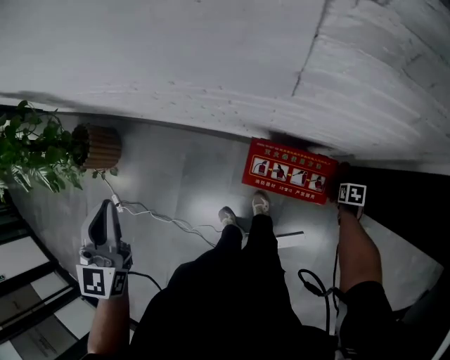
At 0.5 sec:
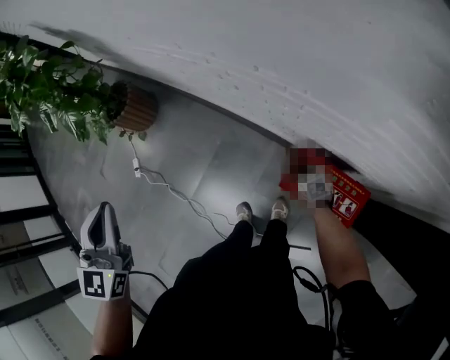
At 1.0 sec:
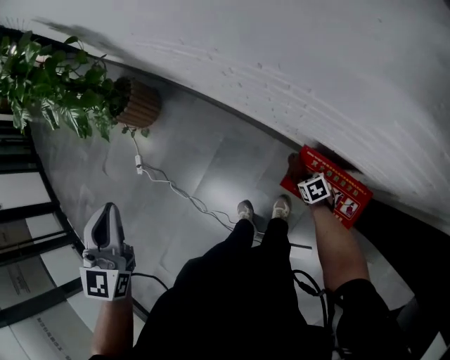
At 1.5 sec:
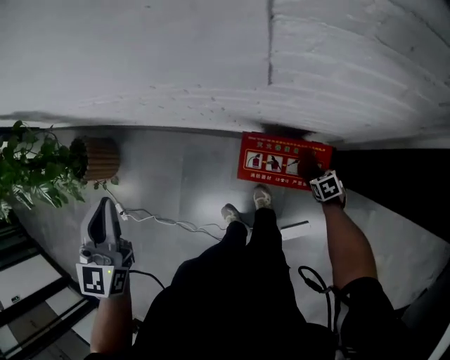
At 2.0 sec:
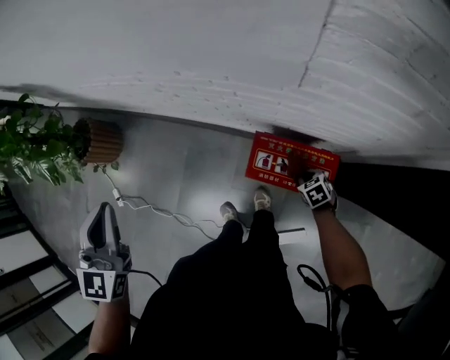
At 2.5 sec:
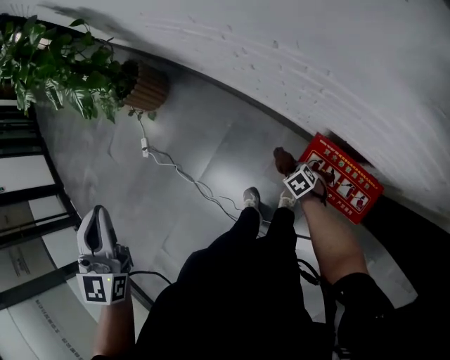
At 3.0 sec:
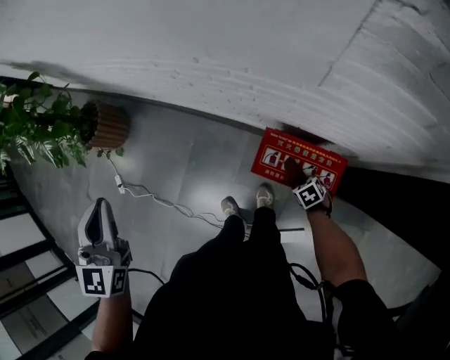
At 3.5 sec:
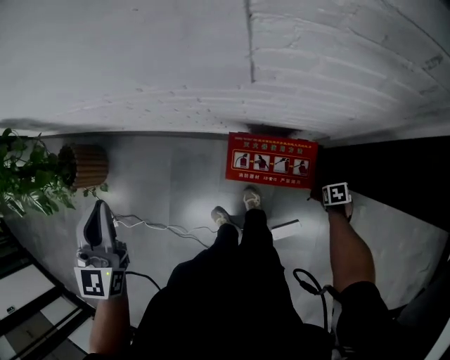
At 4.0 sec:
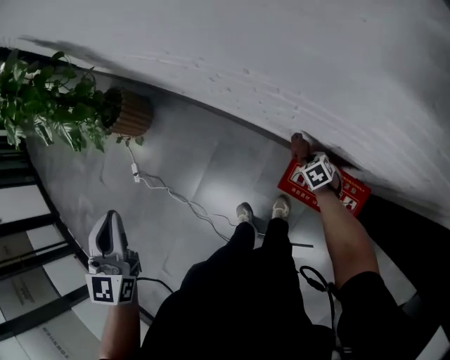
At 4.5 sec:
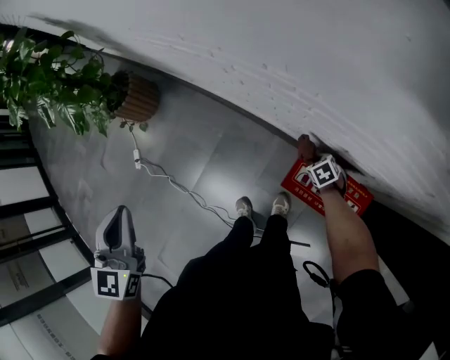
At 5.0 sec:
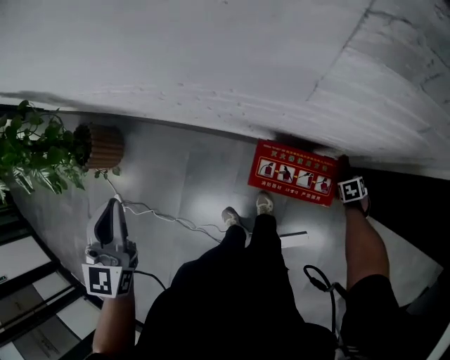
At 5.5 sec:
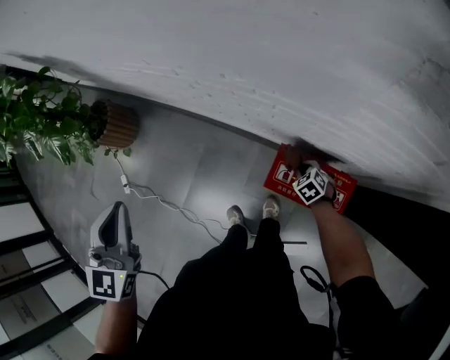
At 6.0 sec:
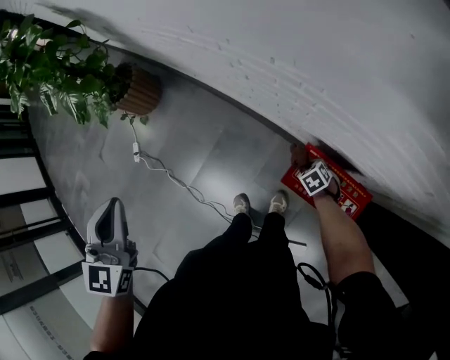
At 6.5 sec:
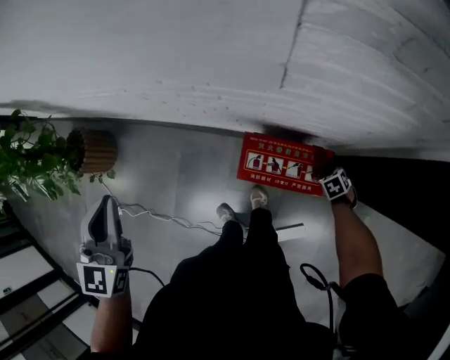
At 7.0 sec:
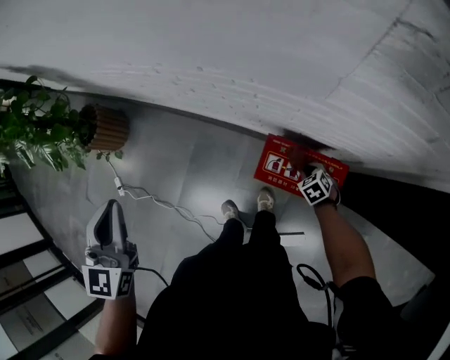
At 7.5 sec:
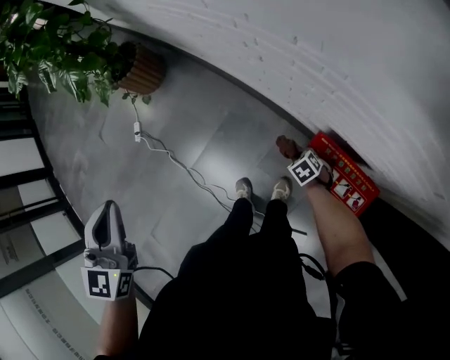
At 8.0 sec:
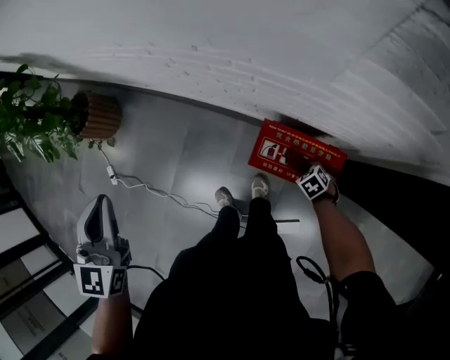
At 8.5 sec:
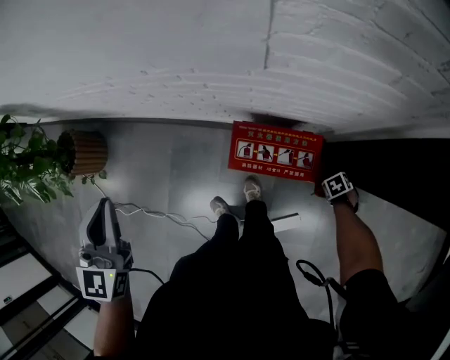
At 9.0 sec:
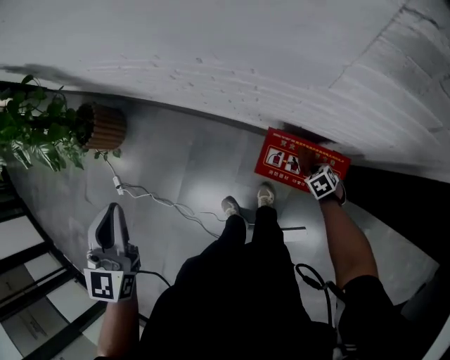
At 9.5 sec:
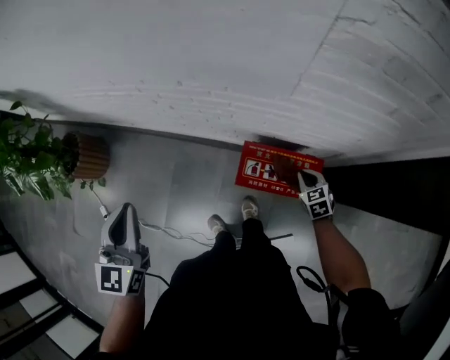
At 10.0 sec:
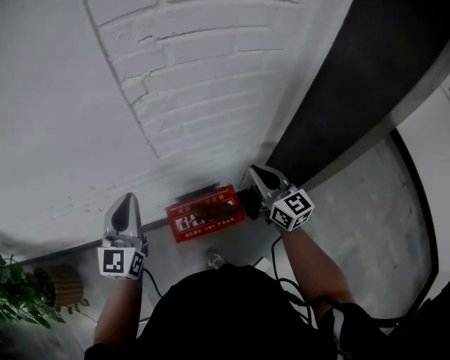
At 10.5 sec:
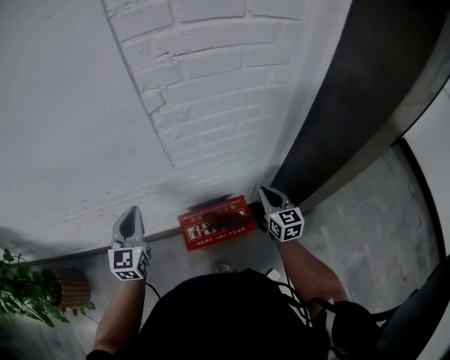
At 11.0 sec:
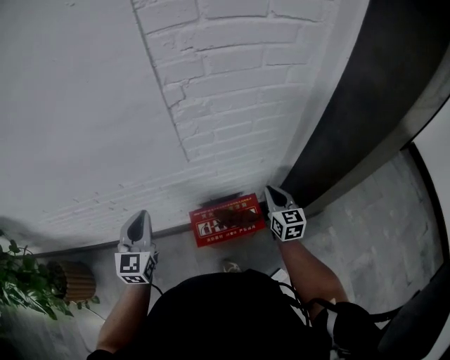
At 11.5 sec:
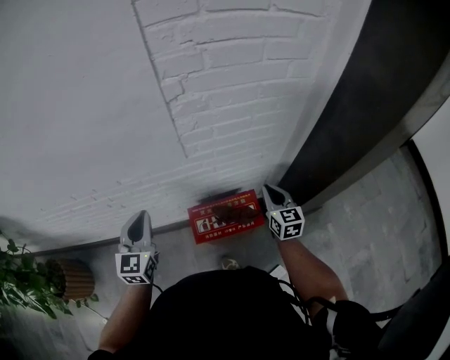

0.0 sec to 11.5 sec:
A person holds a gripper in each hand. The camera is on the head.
0.0 sec to 2.0 sec: The right gripper rotates roughly 40 degrees.
2.0 sec to 4.0 sec: The right gripper moves about 20 cm.
7.5 sec to 9.5 sec: The left gripper changes place by approximately 15 cm, and rotates approximately 30 degrees; the right gripper ends up roughly 30 cm from where it was, and rotates about 40 degrees.
9.5 sec to 11.5 sec: The left gripper changes place by about 20 cm, and changes its angle by approximately 30 degrees, while the right gripper travels upward by about 20 cm, and tilts its fingers some 30 degrees upward.

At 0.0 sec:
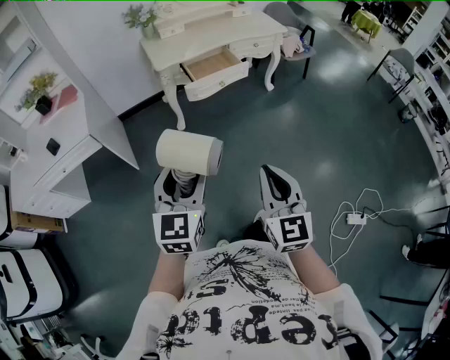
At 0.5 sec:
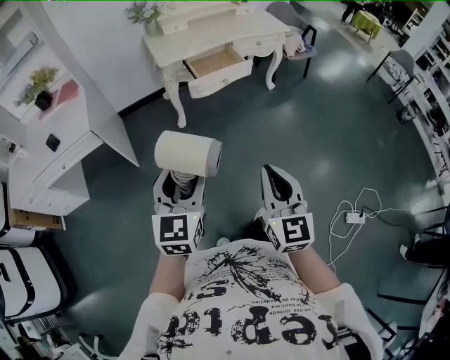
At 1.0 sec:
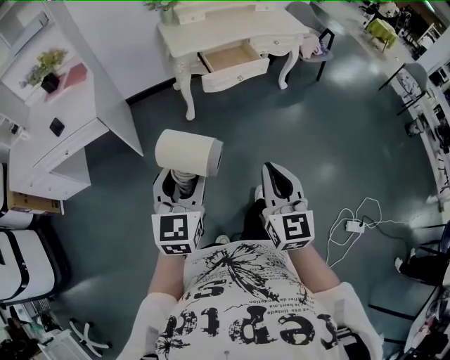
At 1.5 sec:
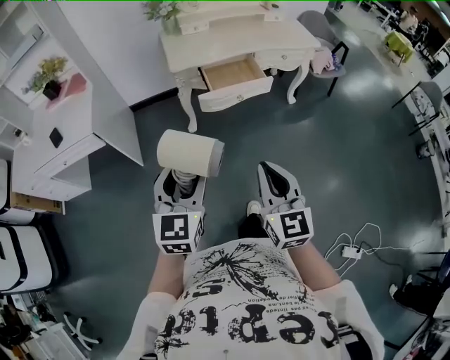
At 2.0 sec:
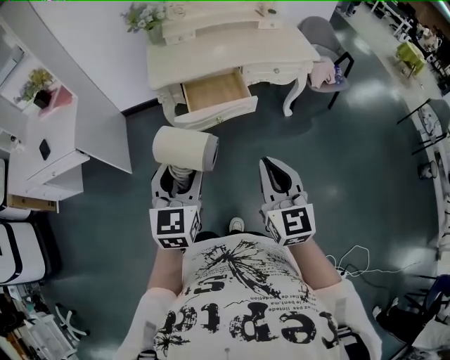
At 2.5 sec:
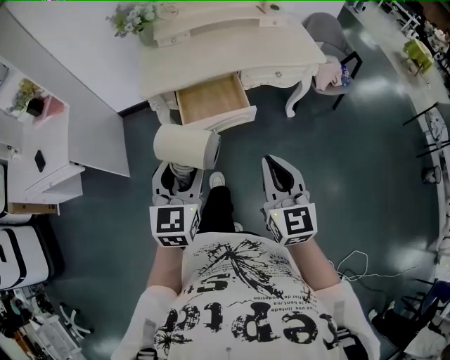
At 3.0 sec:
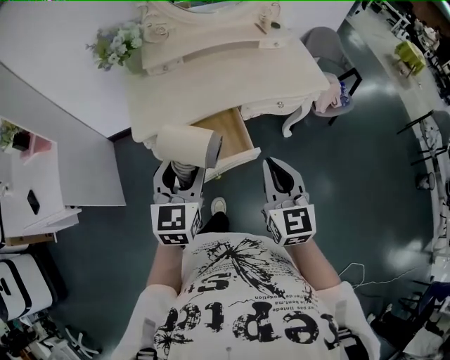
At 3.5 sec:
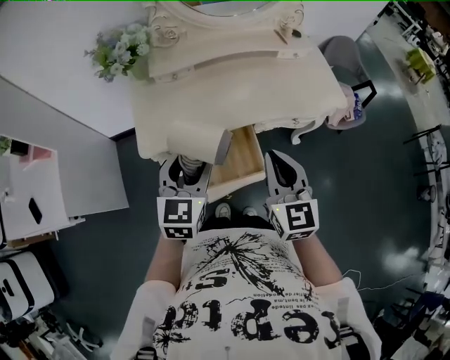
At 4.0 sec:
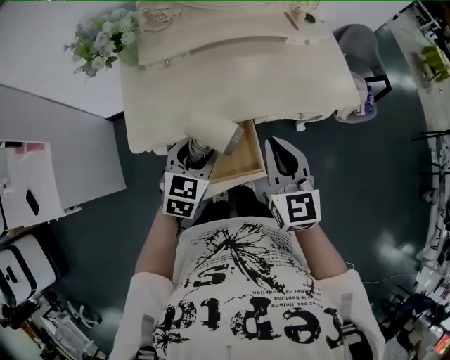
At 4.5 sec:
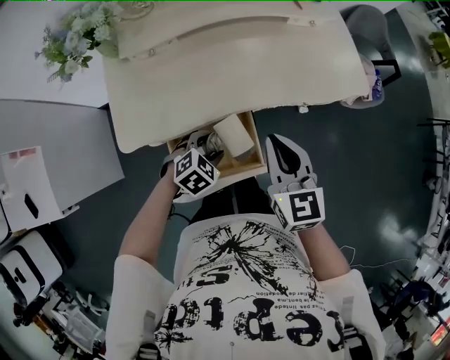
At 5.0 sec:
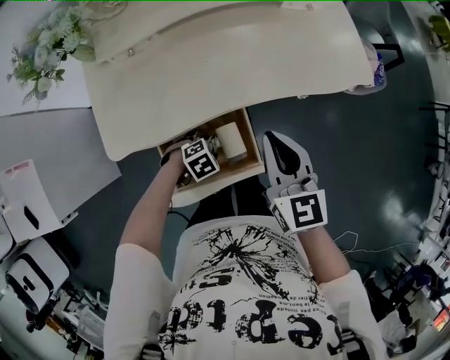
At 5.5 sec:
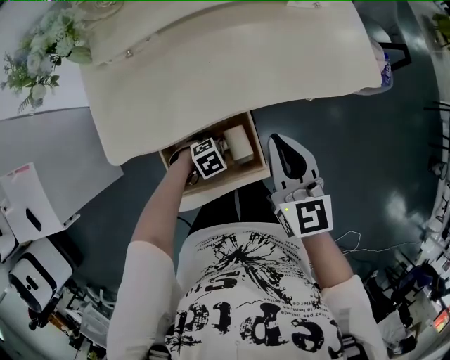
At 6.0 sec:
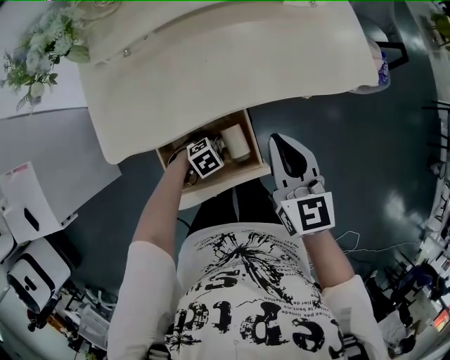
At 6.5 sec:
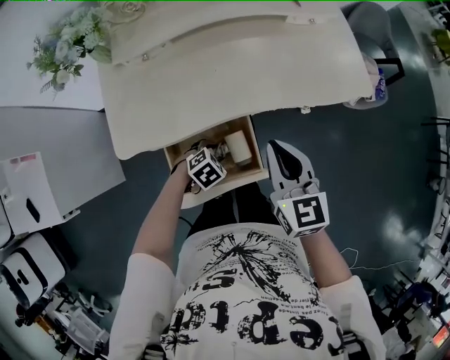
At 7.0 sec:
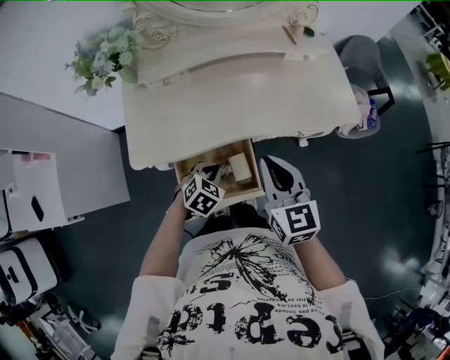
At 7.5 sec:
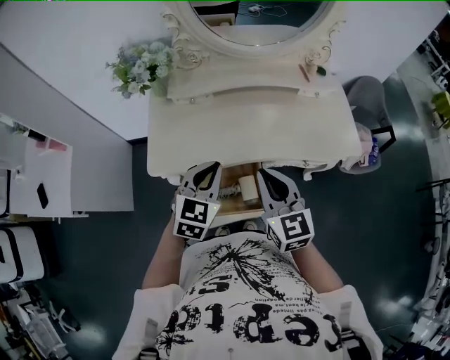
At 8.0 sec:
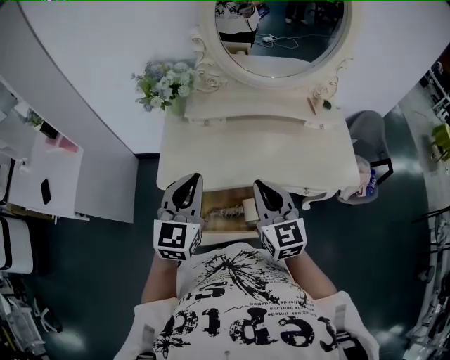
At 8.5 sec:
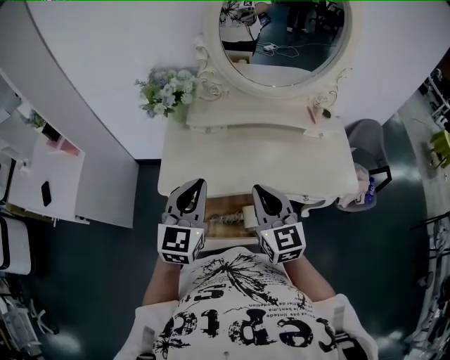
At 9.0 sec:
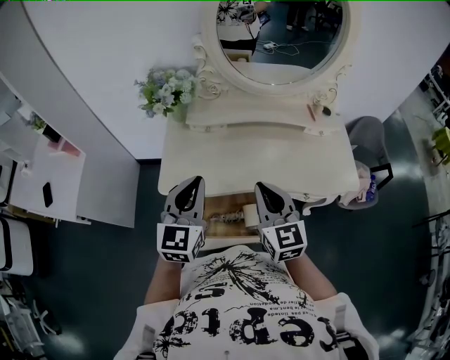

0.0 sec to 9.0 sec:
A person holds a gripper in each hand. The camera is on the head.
0.0 sec to 2.0 sec: The grippers both shift forward and to the right by approximately 30 cm.
2.0 sec to 4.5 sec: Both grippers are carried forward, approximately 50 cm. The left gripper travels downward by roughly 30 cm, and points its fingers approximately 40 degrees further downward.
4.5 sec to 7.0 sec: The left gripper reaches about 15 cm downward, then returns, and closes its fingers.
7.0 sec to 9.0 sec: The left gripper heads upward, covering some 30 cm, and tips its fingers upward by about 50 degrees; the right gripper moves to the left and upward, some 10 cm.

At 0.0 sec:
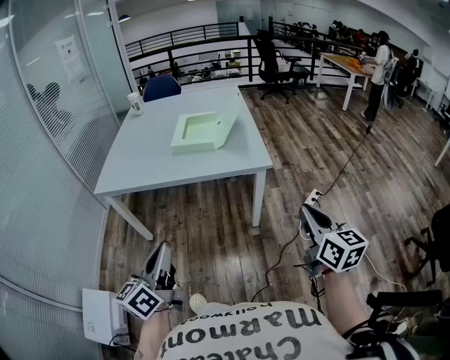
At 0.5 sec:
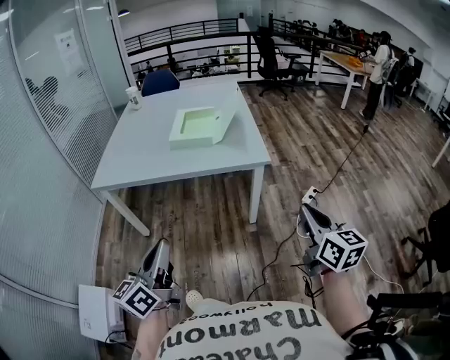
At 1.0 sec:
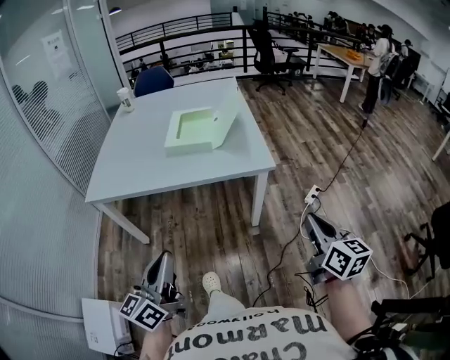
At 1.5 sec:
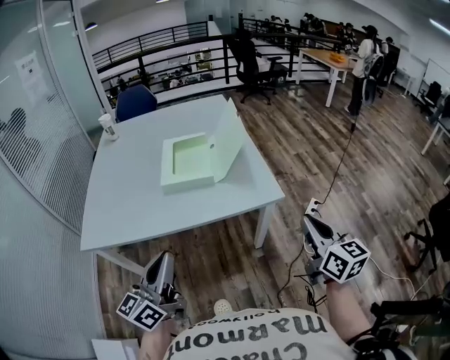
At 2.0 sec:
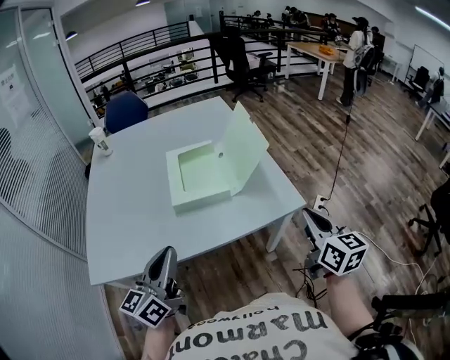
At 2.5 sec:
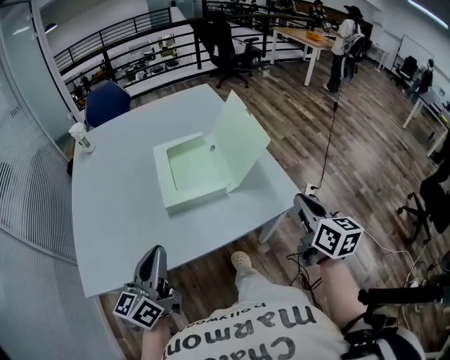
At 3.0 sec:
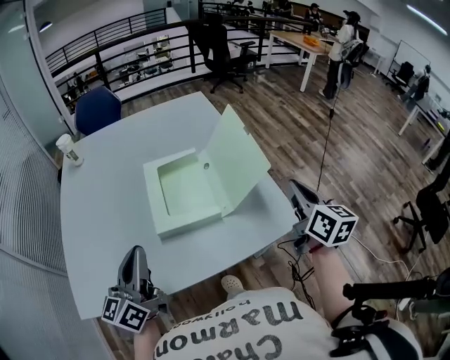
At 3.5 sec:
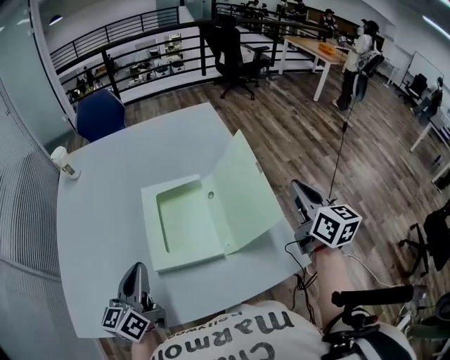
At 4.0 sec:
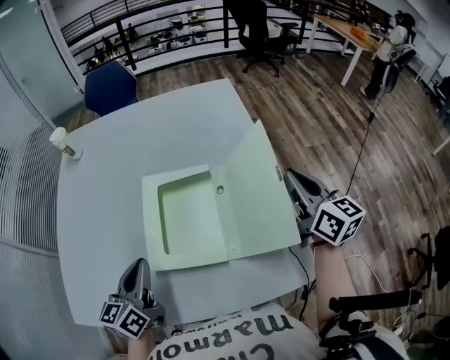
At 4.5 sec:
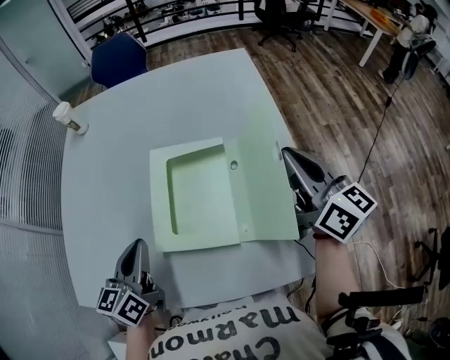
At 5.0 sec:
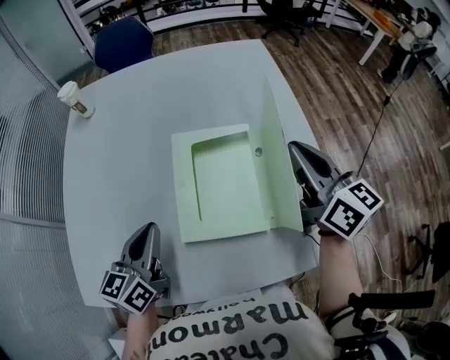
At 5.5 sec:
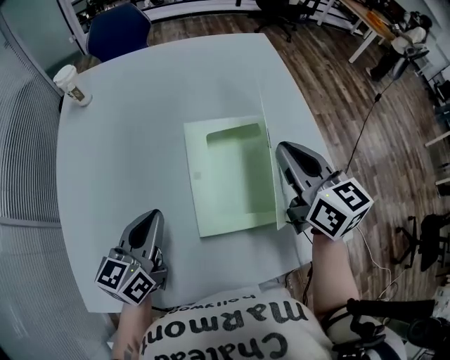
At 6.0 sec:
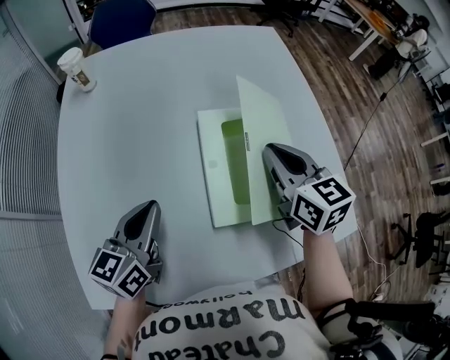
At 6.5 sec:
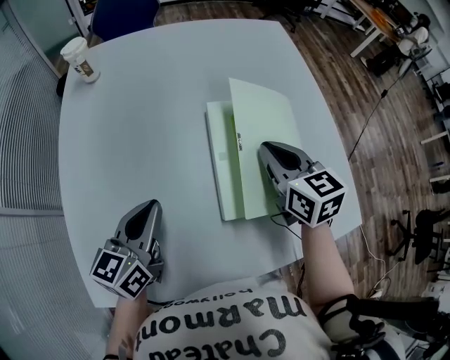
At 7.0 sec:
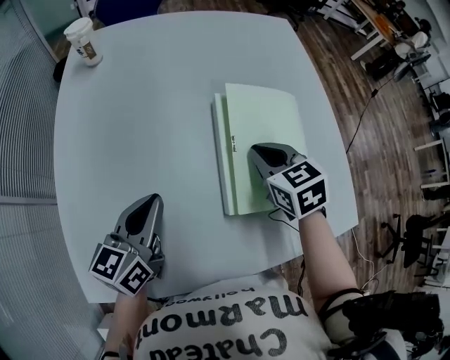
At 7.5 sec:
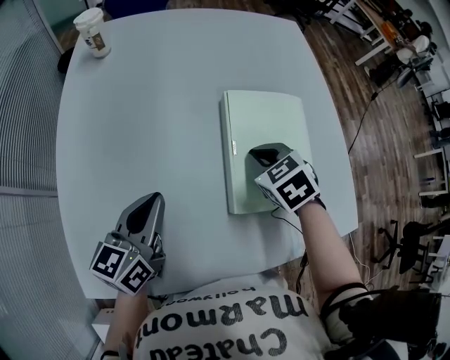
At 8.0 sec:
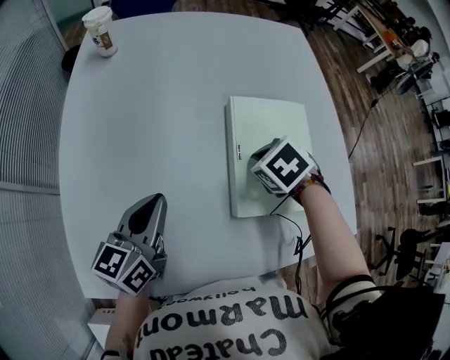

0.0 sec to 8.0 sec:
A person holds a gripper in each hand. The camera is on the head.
0.0 sec to 2.0 sec: Both grippers move forward and to the left, about 35 cm.
2.0 sec to 4.0 sec: The two grippers go roughly 35 cm forward. The left gripper swivels some 20 degrees.
4.0 sec to 6.0 sec: The left gripper goes roughly 15 cm to the left. Meanwhile the right gripper heads to the left, covering some 30 cm.
6.0 sec to 8.0 sec: The left gripper ends up roughly 5 cm from where it was. Meanwhile the right gripper moves downward, some 15 cm, and angles its fingers downward, by about 50 degrees.
